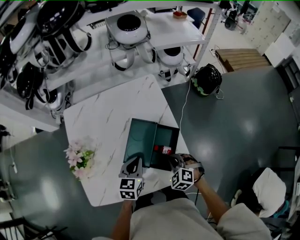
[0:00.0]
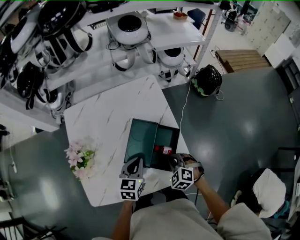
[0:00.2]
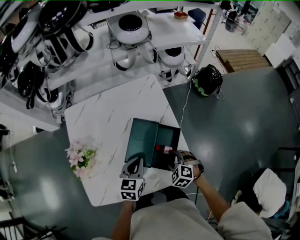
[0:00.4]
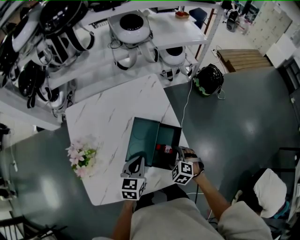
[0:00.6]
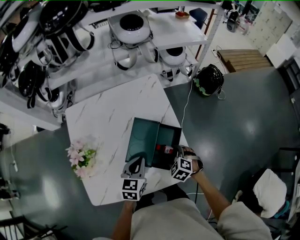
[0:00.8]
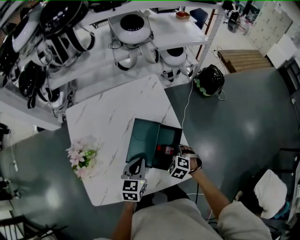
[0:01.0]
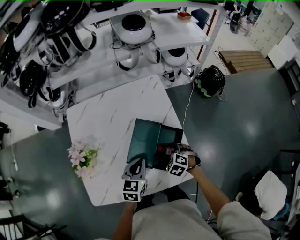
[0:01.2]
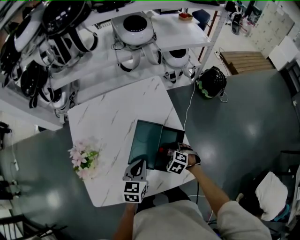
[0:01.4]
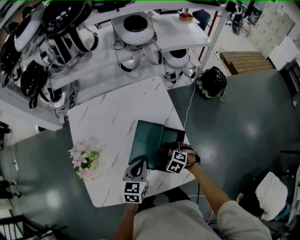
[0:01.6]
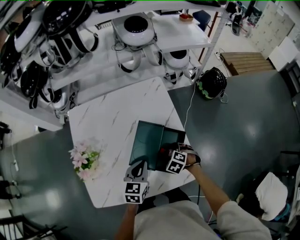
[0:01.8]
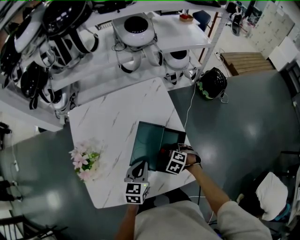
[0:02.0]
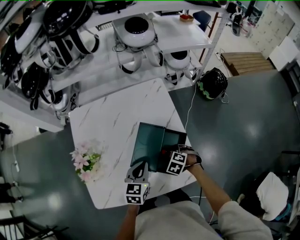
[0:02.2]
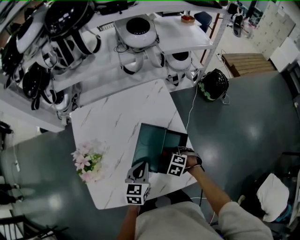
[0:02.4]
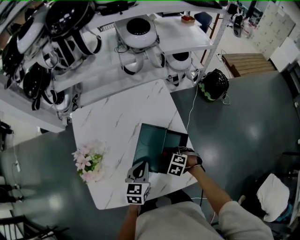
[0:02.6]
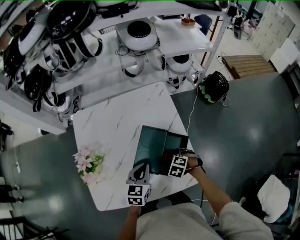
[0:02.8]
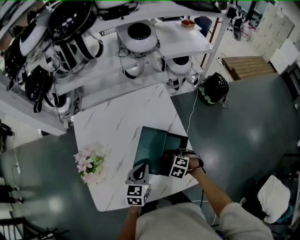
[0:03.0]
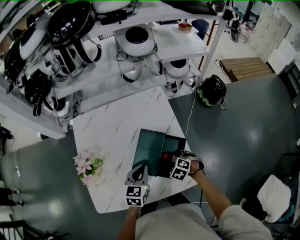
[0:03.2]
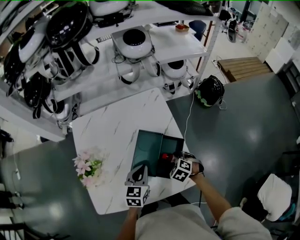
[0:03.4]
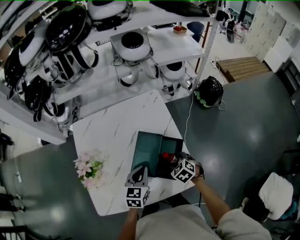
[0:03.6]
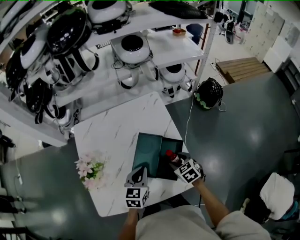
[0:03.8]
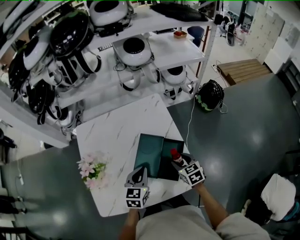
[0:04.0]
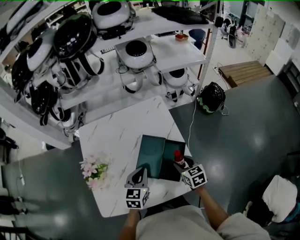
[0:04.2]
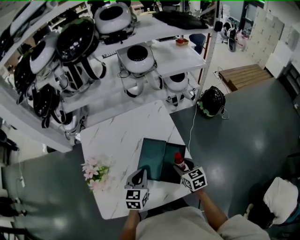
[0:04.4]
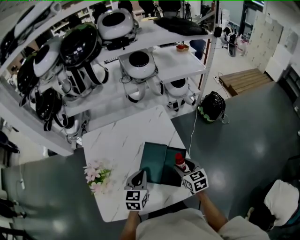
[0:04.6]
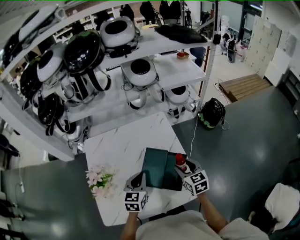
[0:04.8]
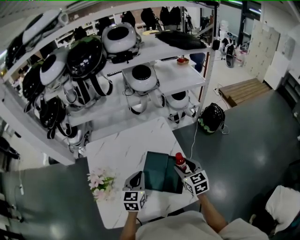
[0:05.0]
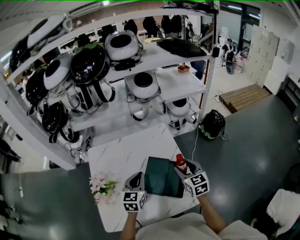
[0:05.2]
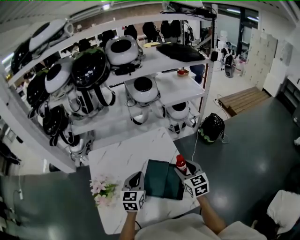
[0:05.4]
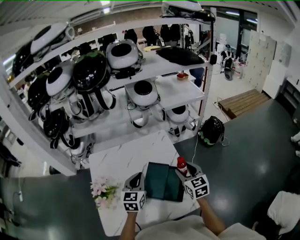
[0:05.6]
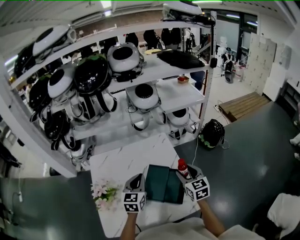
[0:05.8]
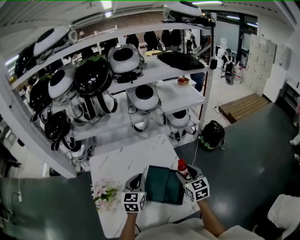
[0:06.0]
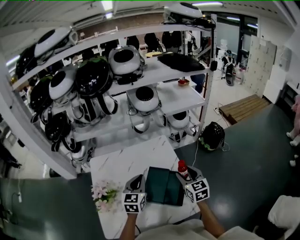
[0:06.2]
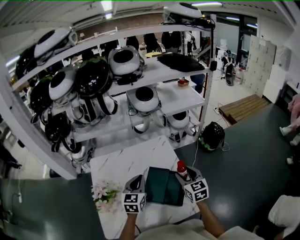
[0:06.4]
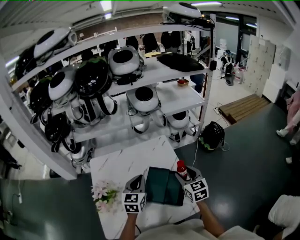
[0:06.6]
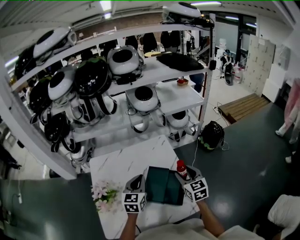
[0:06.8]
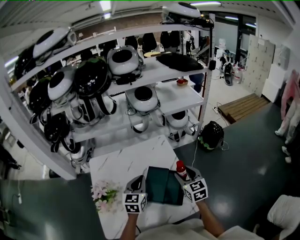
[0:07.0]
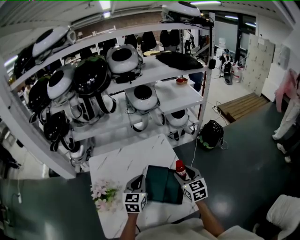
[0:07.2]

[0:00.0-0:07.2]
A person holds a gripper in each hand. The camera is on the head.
0:00.0 to 0:01.4: The right gripper goes some 5 cm downward, and opens up.
0:01.4 to 0:02.8: The grippers make only small movements.
0:02.8 to 0:04.4: The right gripper goes about 15 cm upward, and tips its fingers upward by roughly 40 degrees, while the left gripper heads upward, covering about 5 cm.
0:04.4 to 0:05.8: The left gripper travels upward by some 10 cm; the right gripper travels upward by some 15 cm, and changes its angle by roughly 20 degrees.
0:05.8 to 0:07.2: The two grippers keep their place.

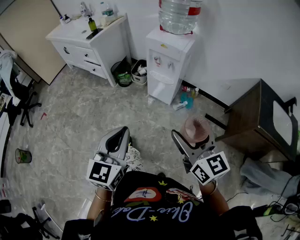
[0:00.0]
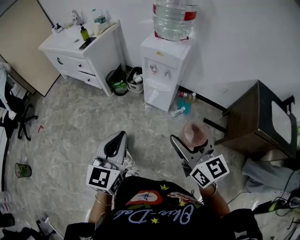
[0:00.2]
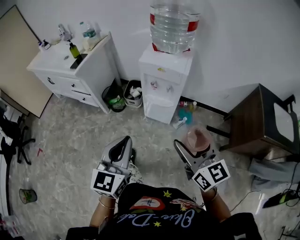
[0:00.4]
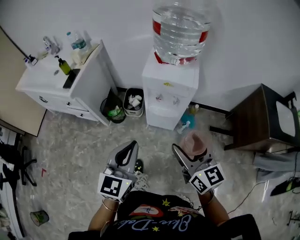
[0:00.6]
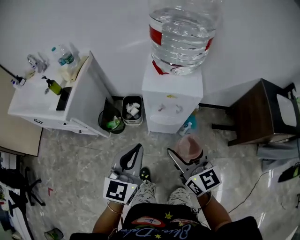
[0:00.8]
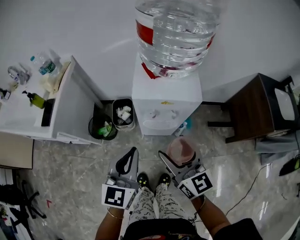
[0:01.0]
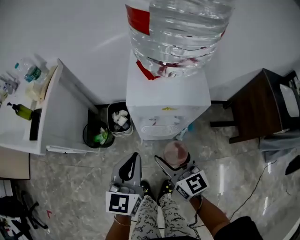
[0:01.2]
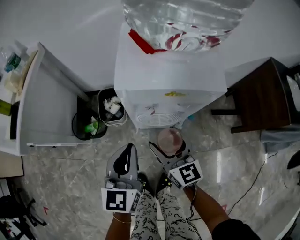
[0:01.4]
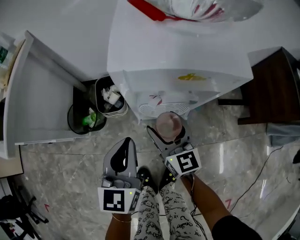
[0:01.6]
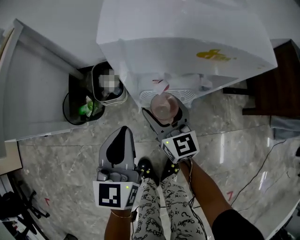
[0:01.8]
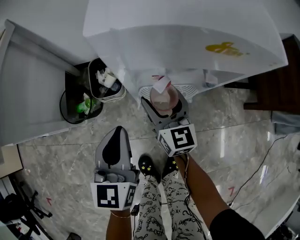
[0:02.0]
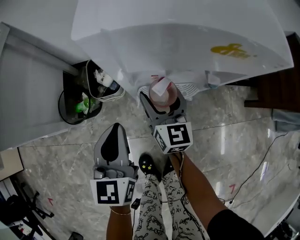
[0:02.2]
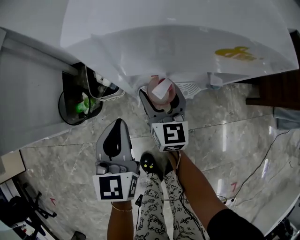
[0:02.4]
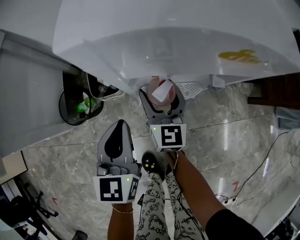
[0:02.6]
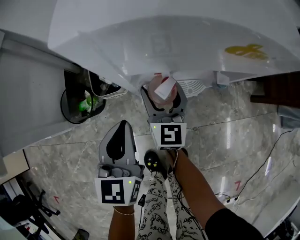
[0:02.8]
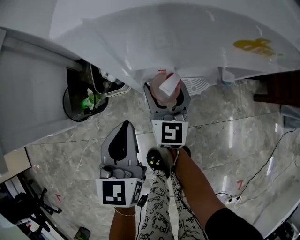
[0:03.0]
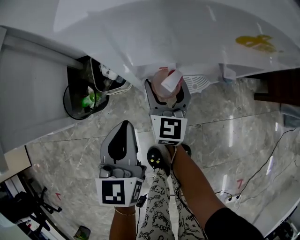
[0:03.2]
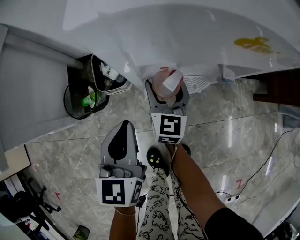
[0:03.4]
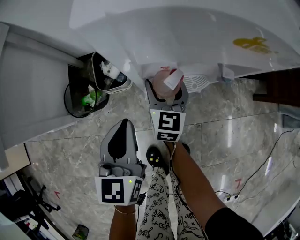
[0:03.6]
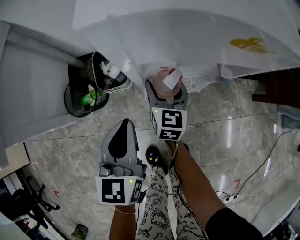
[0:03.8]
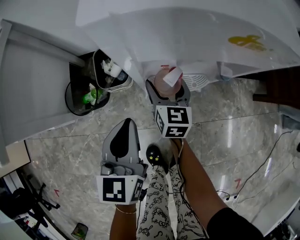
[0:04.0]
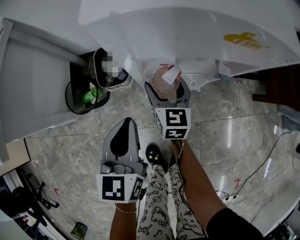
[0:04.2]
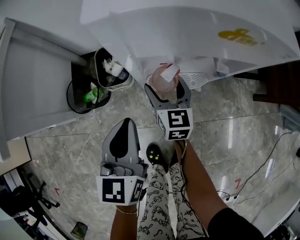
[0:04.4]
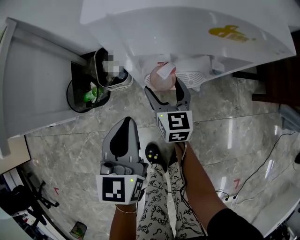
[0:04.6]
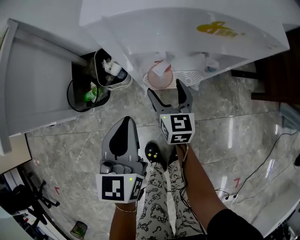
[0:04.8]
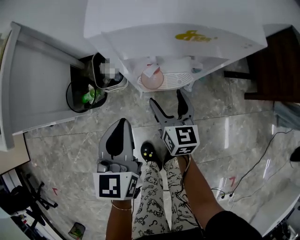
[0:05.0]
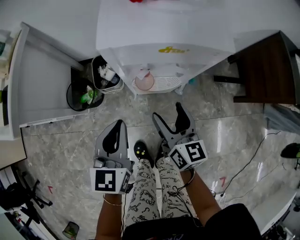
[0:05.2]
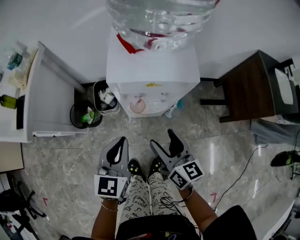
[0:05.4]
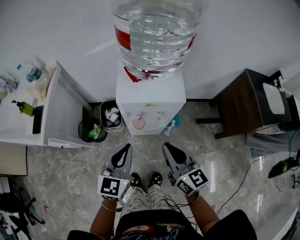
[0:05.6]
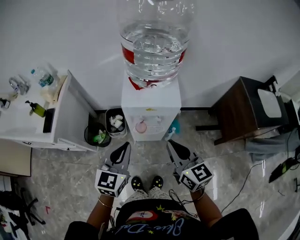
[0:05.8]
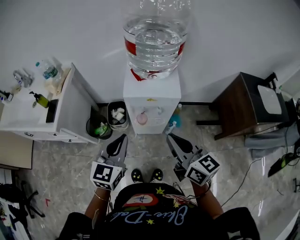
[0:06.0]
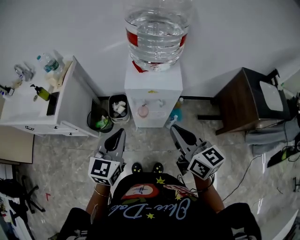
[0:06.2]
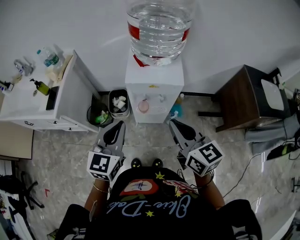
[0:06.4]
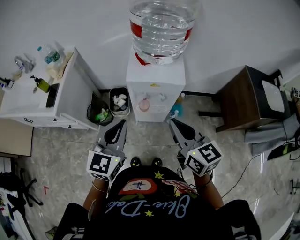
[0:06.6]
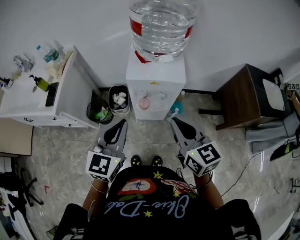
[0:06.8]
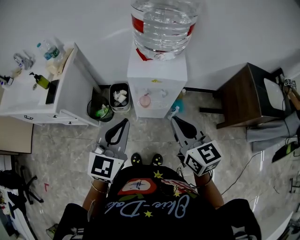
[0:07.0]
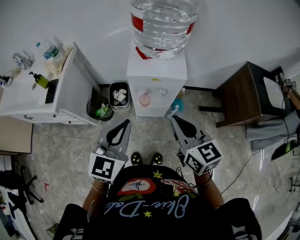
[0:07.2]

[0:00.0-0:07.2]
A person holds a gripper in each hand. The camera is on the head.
0:00.0 to 0:01.4: Both grippers are carried forward, roughly 50 cm. The grippers both shift downward by some 30 cm. The left gripper changes its angle by about 20 degrees, while the right gripper swivels about 30 degrees.
0:01.4 to 0:02.8: The left gripper goes some 15 cm downward, while the right gripper moves downward and forward, some 20 cm, and rotates some 20 degrees.
0:02.8 to 0:04.4: The grippers stay close to where they were, moving slightly.
0:04.4 to 0:05.8: The left gripper is displaced upward by approximately 30 cm. Meanwhile the right gripper moves upward and backward, some 50 cm, and closes its fingers.
0:05.8 to 0:07.2: The left gripper is displaced backward and upward by about 10 cm.

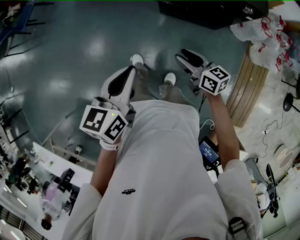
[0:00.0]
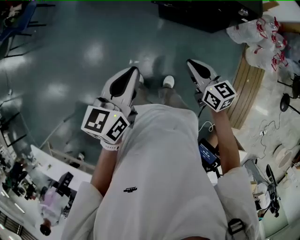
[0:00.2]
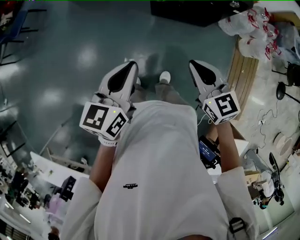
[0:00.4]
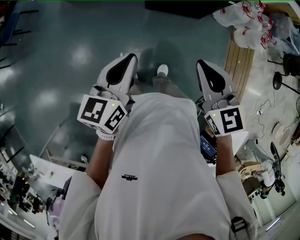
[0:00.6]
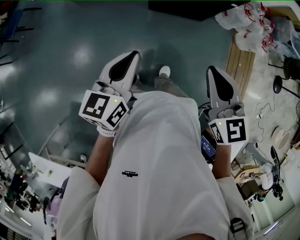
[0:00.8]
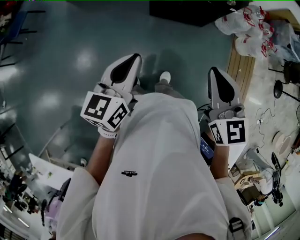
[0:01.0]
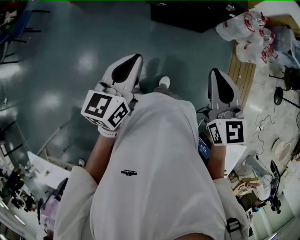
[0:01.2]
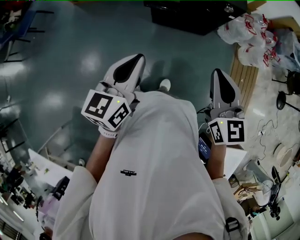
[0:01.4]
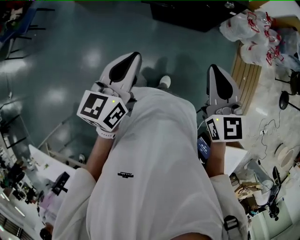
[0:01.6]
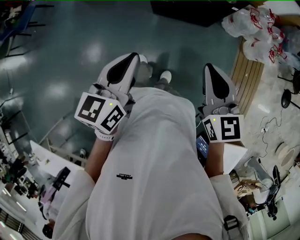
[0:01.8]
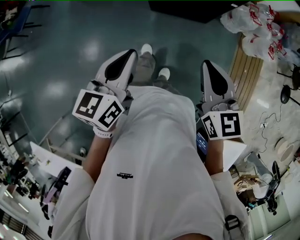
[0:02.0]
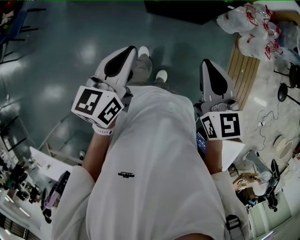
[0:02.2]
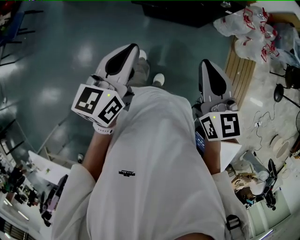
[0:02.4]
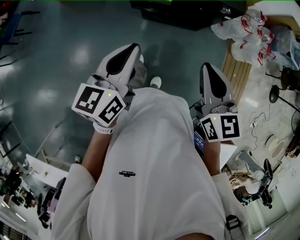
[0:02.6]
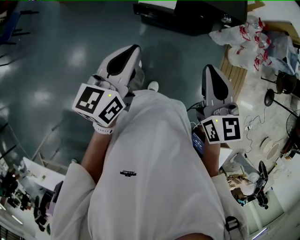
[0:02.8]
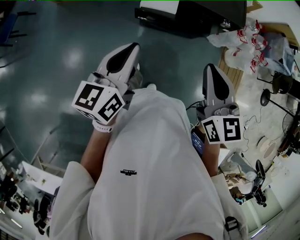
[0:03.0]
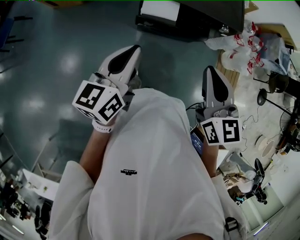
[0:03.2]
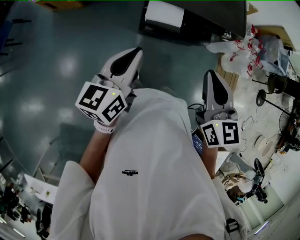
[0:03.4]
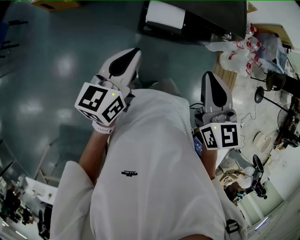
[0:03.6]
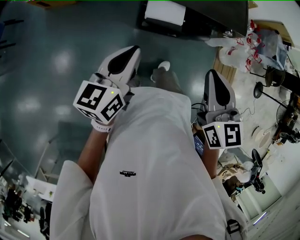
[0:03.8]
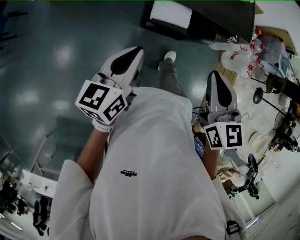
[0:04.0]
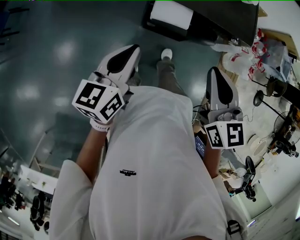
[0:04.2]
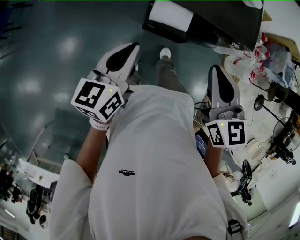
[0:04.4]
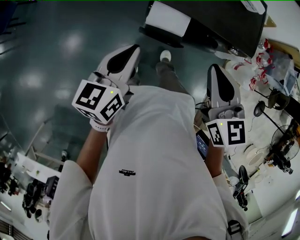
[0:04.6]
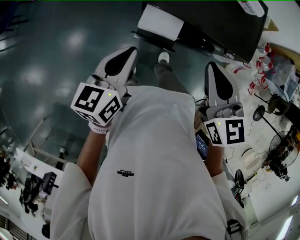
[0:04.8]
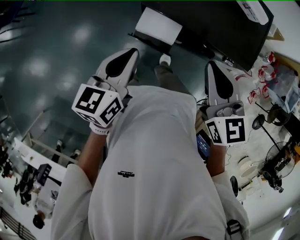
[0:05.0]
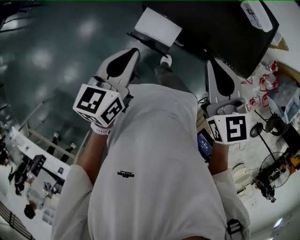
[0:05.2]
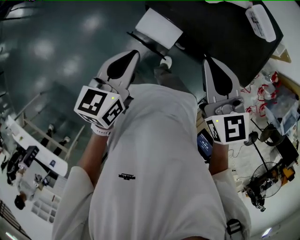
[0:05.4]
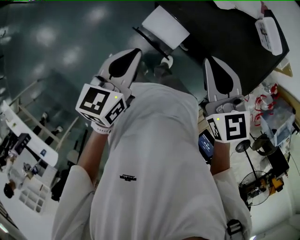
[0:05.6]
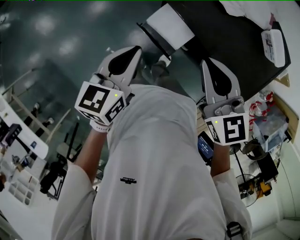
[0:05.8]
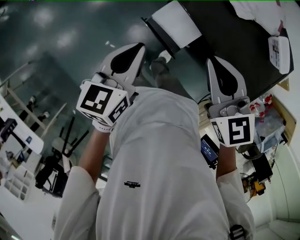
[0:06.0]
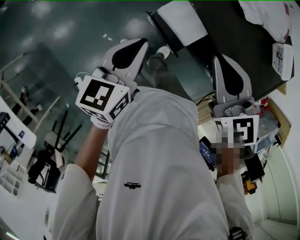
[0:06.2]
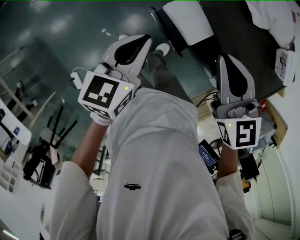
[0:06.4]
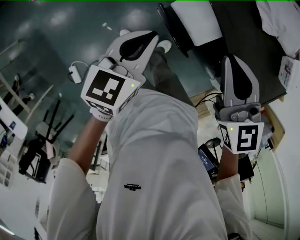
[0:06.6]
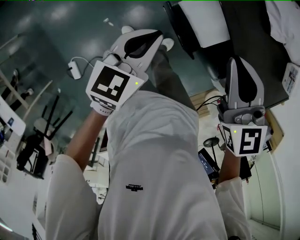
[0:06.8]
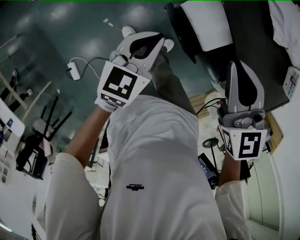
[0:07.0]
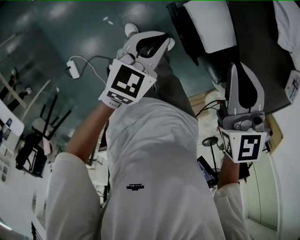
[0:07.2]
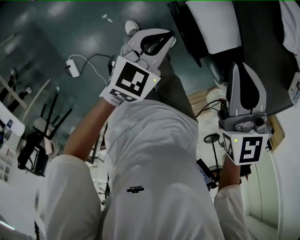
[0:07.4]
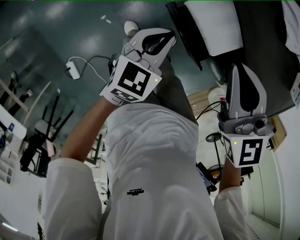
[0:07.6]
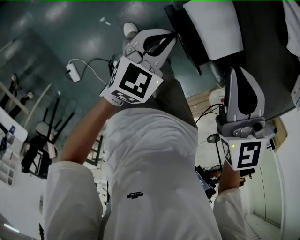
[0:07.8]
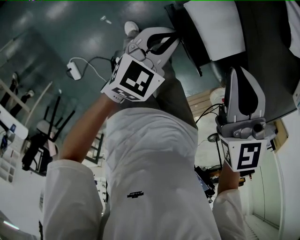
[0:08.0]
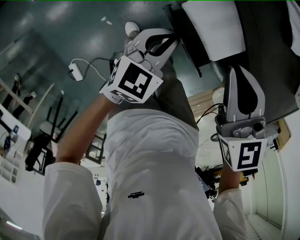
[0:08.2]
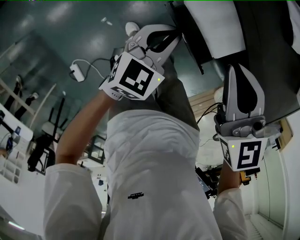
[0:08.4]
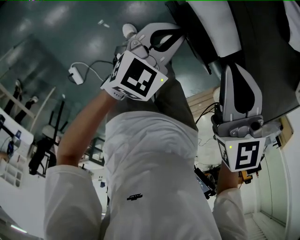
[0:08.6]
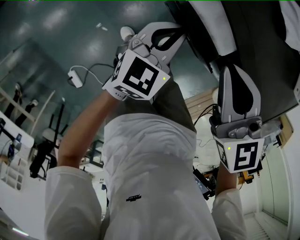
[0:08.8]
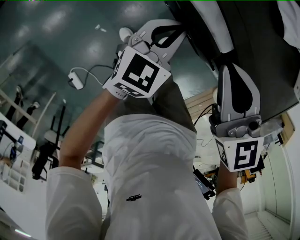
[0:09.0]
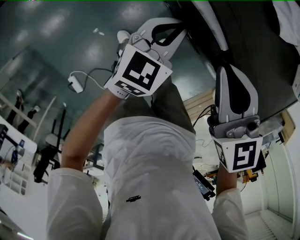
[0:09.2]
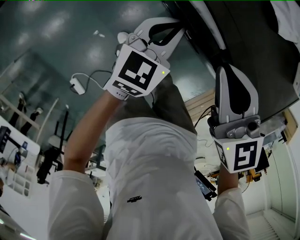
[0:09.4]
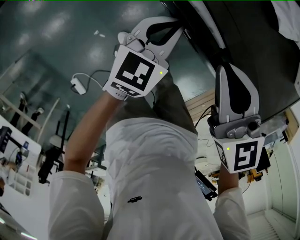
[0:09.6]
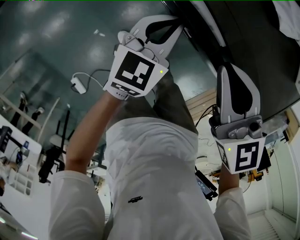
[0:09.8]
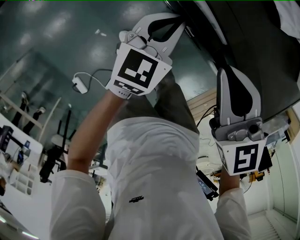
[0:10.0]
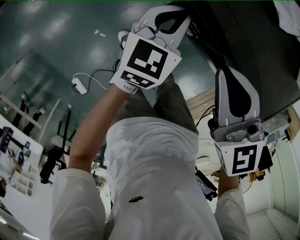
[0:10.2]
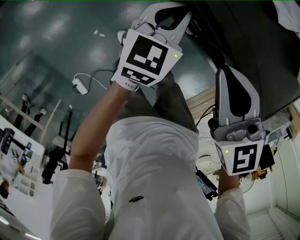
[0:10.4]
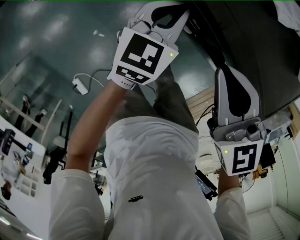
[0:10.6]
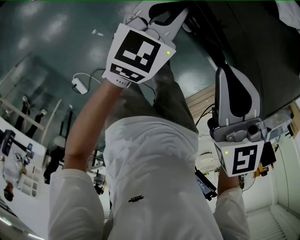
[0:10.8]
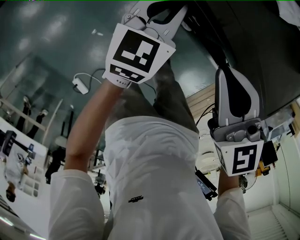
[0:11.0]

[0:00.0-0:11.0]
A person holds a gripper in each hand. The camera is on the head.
0:00.0 to 0:01.6: The right gripper is displaced upward, backward and to the right by approximately 25 cm, rotates about 40 degrees, and closes; the left gripper moves upward and to the right, about 10 cm.
0:01.6 to 0:03.2: The right gripper goes about 20 cm forward and to the left. The left gripper goes approximately 20 cm forward.
0:03.2 to 0:04.8: The two grippers go roughly 15 cm forward.
0:04.8 to 0:06.2: The left gripper goes roughly 5 cm downward, and turns by about 30 degrees, while the right gripper shifts by about 10 cm, and rotates about 40 degrees.
0:06.2 to 0:07.8: The right gripper moves downward, approximately 10 cm, while the left gripper heads downward, covering about 15 cm, and changes its angle by some 20 degrees.
0:07.8 to 0:09.4: The left gripper moves forward and to the right, roughly 10 cm.
0:09.4 to 0:11.0: The grippers move only a little.
